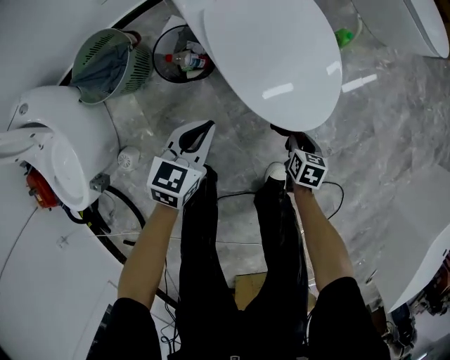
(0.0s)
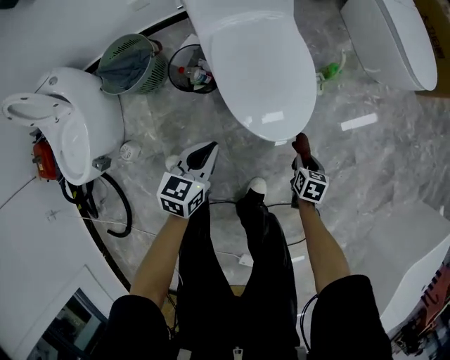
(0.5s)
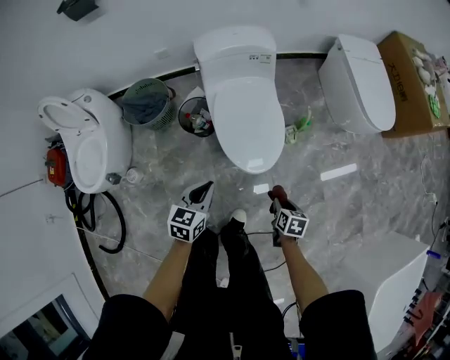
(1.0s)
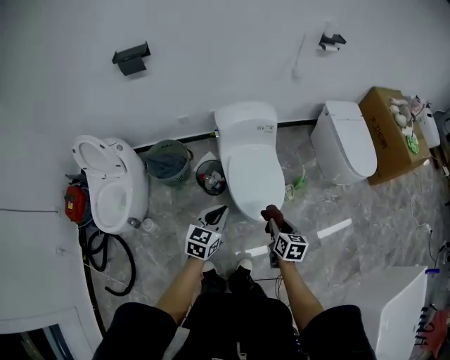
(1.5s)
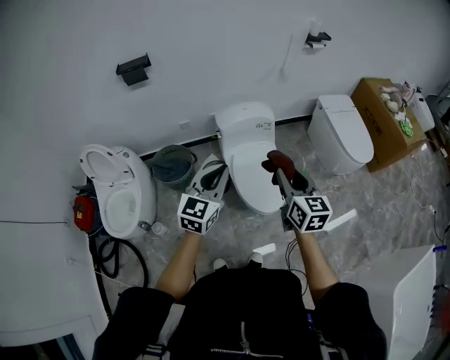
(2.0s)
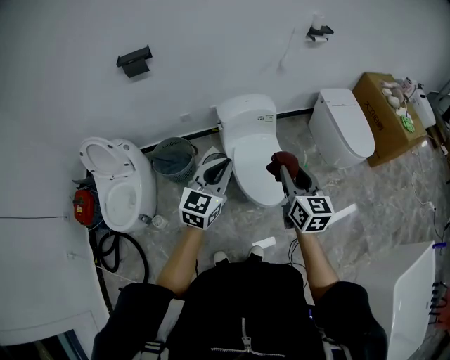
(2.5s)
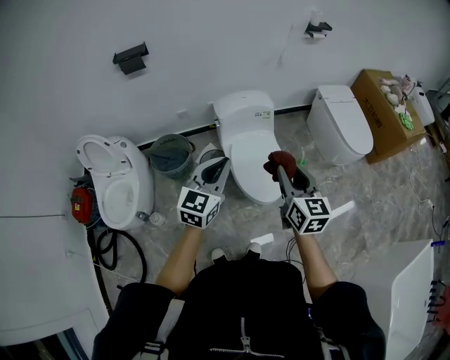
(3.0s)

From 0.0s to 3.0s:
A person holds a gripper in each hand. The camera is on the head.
From 0.0s to 1.5s: Both grippers move upward, about 40 cm. The right gripper swivels some 30 degrees. Meanwhile the left gripper rotates approximately 20 degrees.
From 1.5s to 3.0s: Both grippers move upward, approximately 20 cm. The right gripper swivels some 30 degrees.

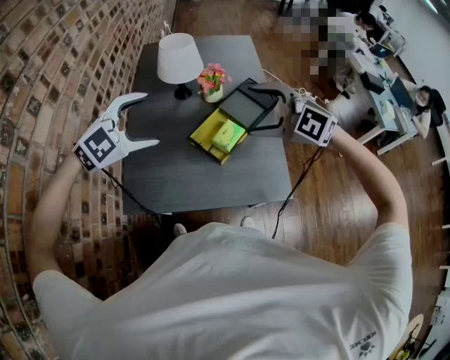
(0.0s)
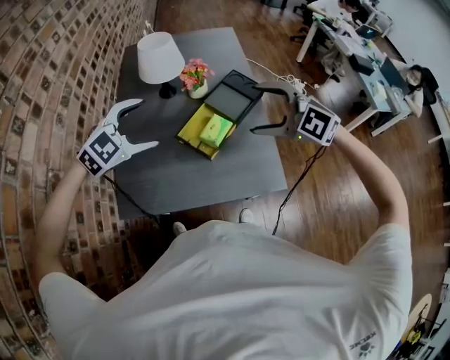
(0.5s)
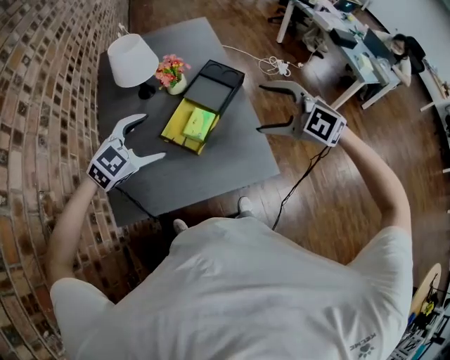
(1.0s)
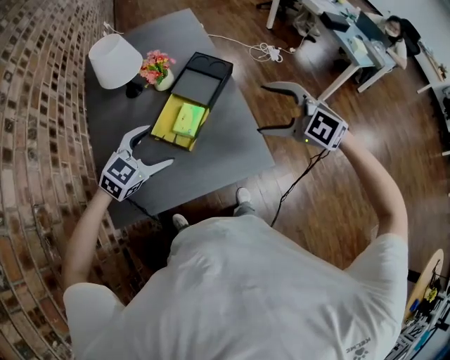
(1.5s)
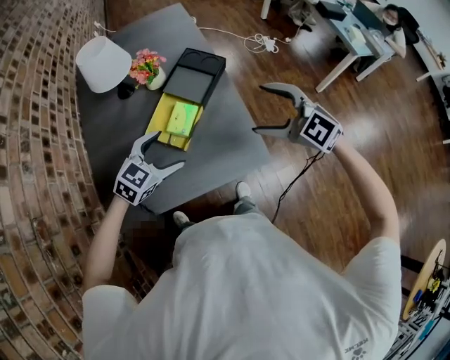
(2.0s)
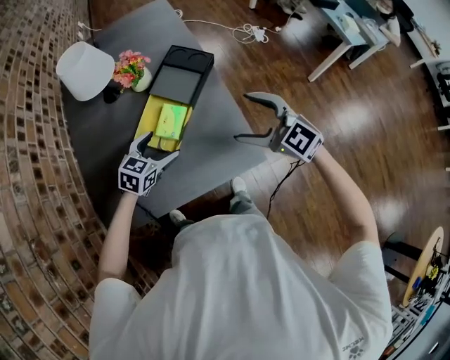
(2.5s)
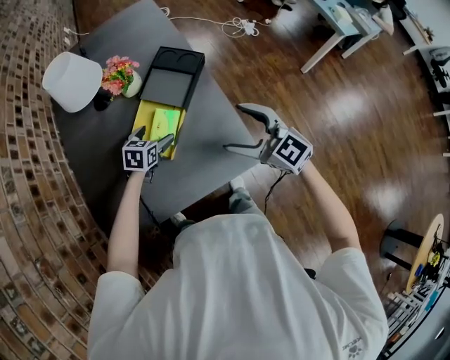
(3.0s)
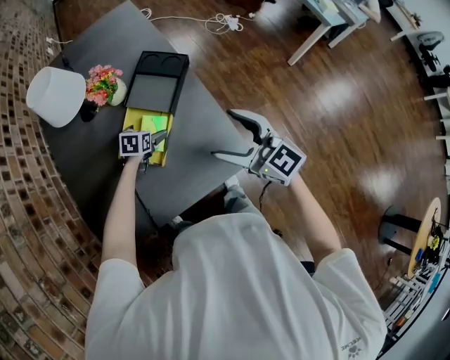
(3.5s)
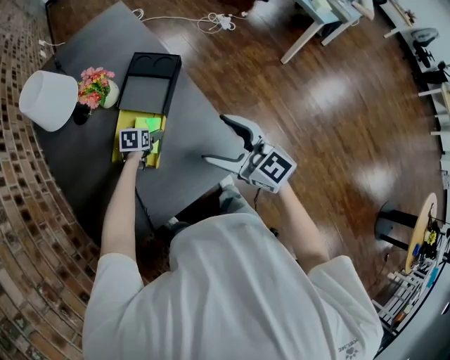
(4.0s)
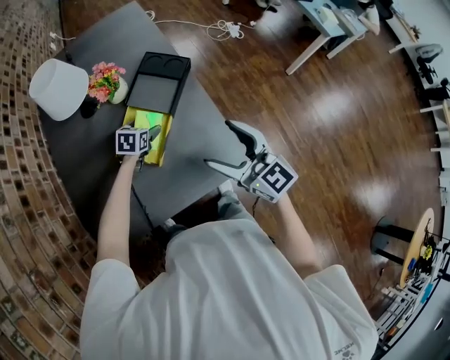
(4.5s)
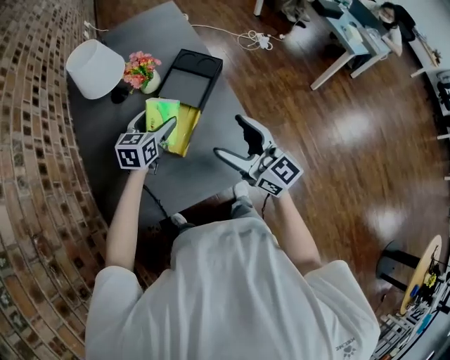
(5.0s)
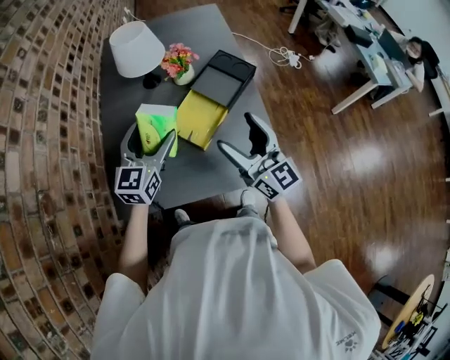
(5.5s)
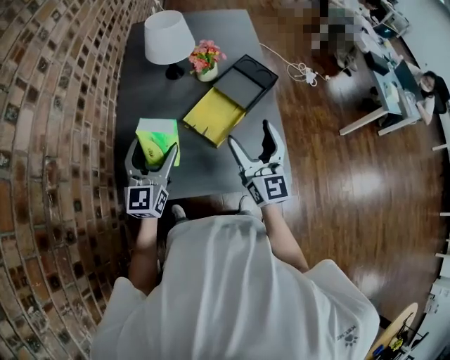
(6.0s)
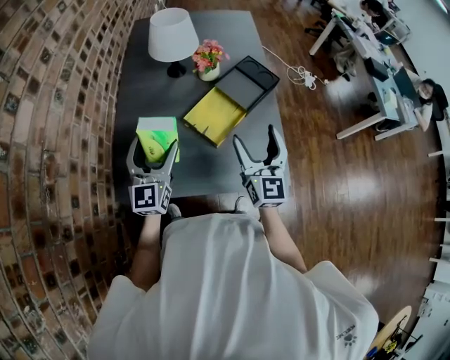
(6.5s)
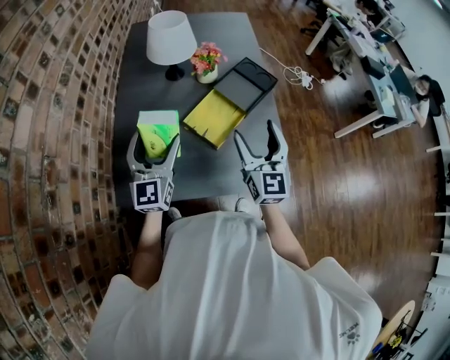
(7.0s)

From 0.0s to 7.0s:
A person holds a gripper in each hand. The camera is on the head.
From 0.0s to 2.0s: The right gripper heads to the right and downward, covering some 20 cm, and turns by approximately 30 degrees; the left gripper goes about 25 cm downward and to the right, and rotates some 30 degrees.
From 2.0s to 3.5s: The right gripper ends up some 5 cm from where it was, and swivels some 30 degrees, while the left gripper is displaced downward and forward by roughly 30 cm, and rotates approximately 40 degrees.
From 3.5s to 5.0s: The right gripper shifts by some 5 cm. The left gripper heads upward, covering roughly 20 cm, and turns by roughly 30 degrees.
From 5.0s to 7.0s: The right gripper heads to the left, covering approximately 10 cm, and rotates approximately 20 degrees, while the left gripper moves to the left, backward and upward, some 25 cm, and angles its fingers upward, by approximately 30 degrees.

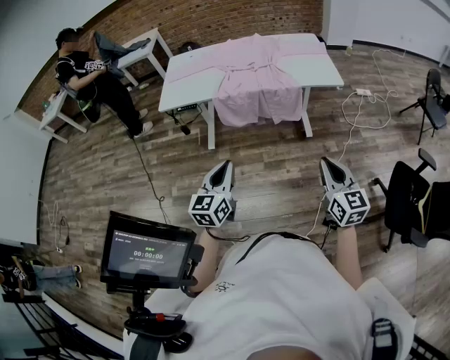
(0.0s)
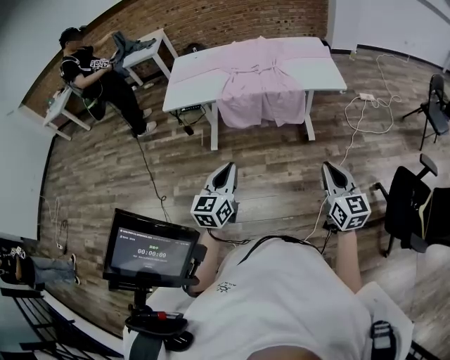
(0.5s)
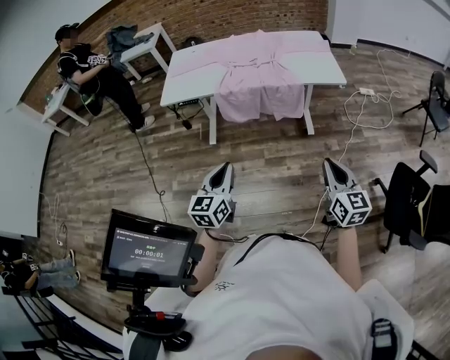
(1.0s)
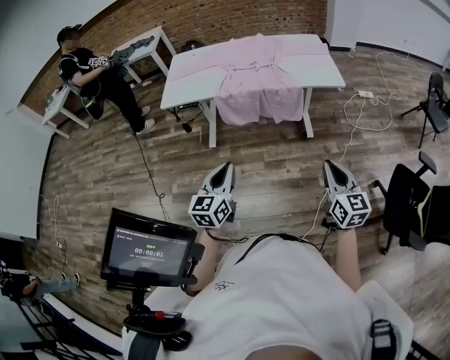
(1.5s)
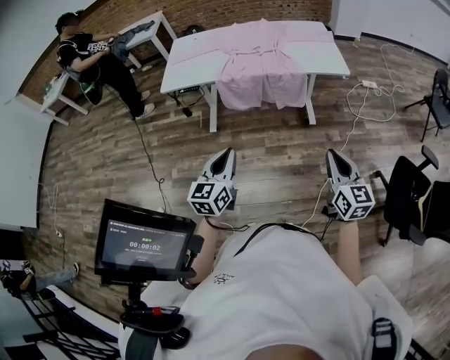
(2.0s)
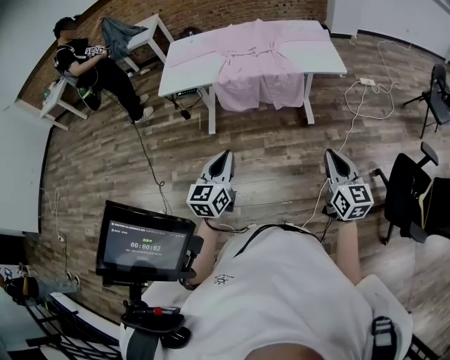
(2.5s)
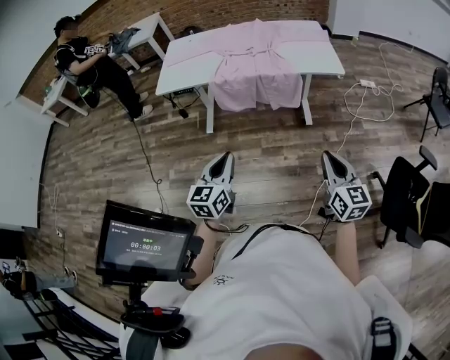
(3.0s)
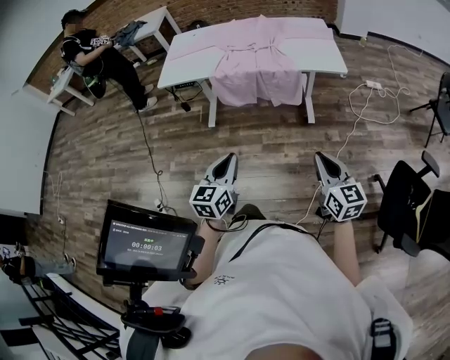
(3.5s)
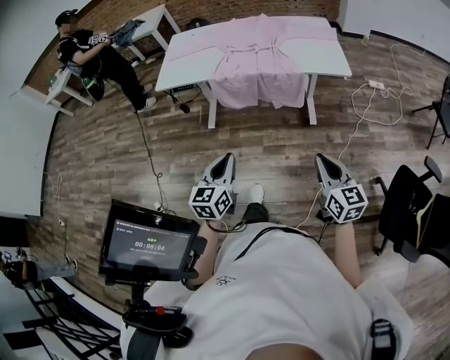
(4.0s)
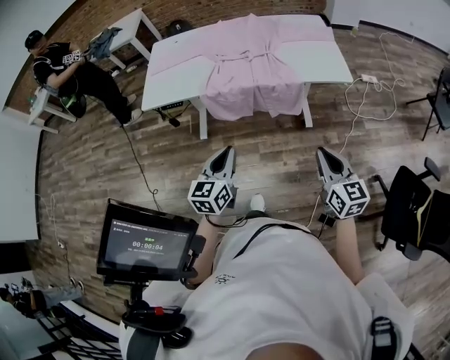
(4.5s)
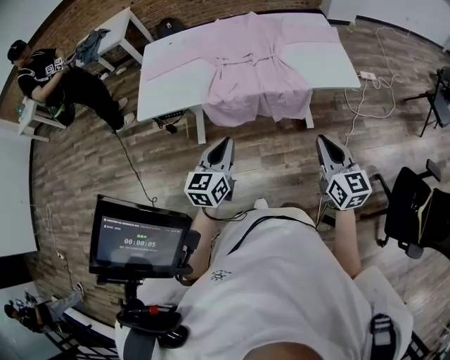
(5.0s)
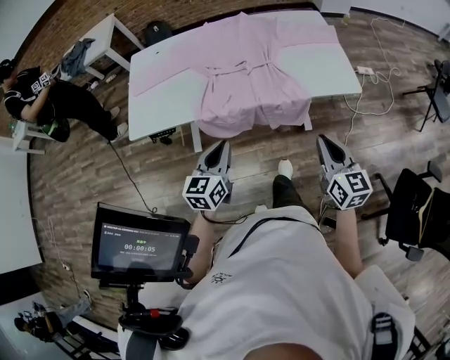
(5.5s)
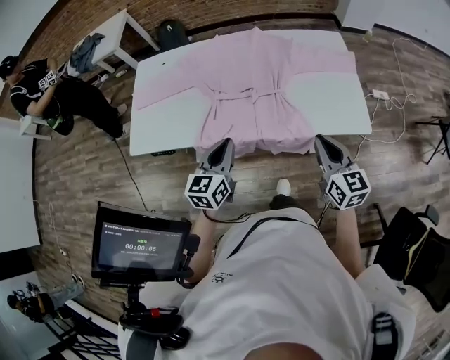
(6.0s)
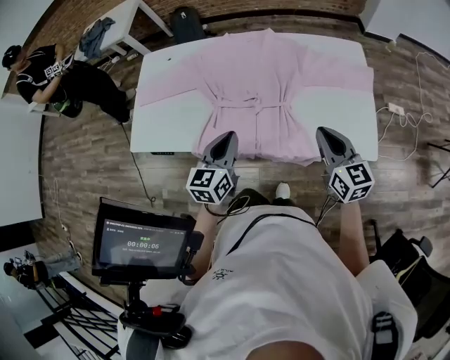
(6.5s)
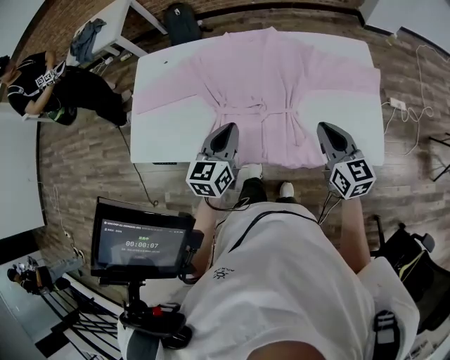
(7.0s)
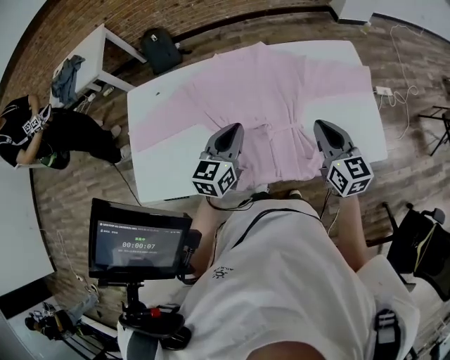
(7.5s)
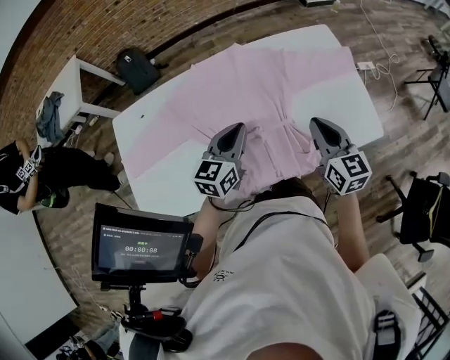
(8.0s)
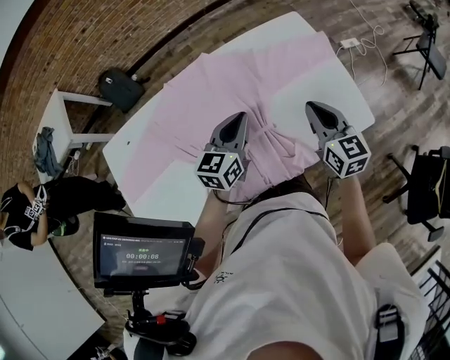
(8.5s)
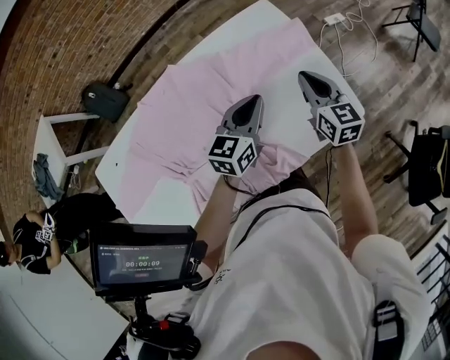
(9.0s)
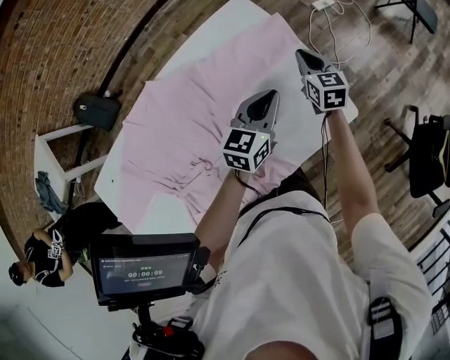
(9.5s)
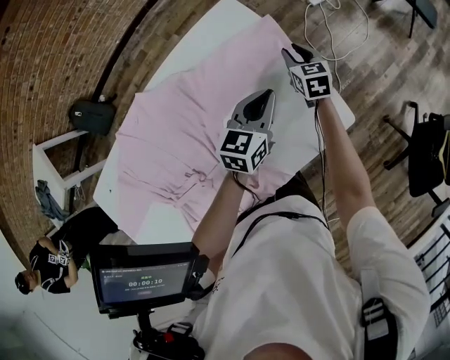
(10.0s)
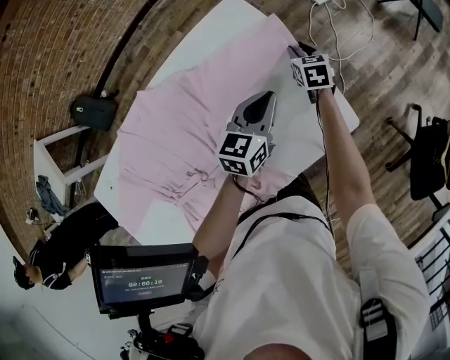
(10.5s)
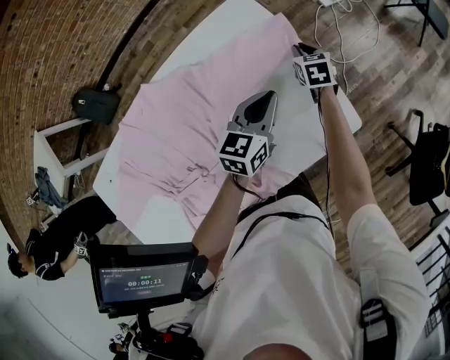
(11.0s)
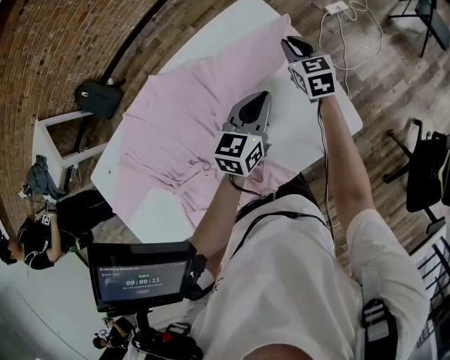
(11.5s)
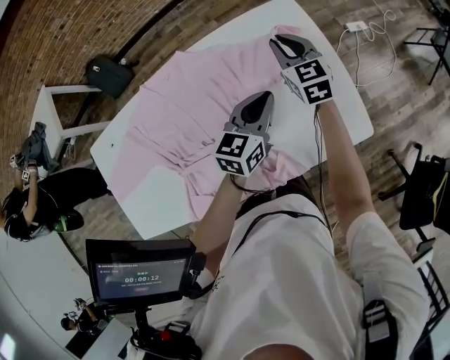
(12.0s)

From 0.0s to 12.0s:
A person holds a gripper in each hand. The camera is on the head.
From 0.0s to 2.0s: The grippers make only small movements.
From 2.0s to 4.0s: The right gripper moves about 5 cm; the left gripper is displaced to the right by some 5 cm.
From 4.0s to 6.0s: The pair of grippers is taken forward, roughly 50 cm.
From 6.0s to 8.0s: The left gripper ends up roughly 25 cm from where it was, and swivels about 20 degrees, while the right gripper shifts by roughly 20 cm.
From 8.0s to 10.0s: The pair of grippers is taken forward and to the right, approximately 40 cm. The right gripper travels downward by about 20 cm, turns by about 30 degrees, and opens, while the left gripper rotates some 20 degrees.
From 10.0s to 12.0s: The right gripper goes about 25 cm to the left and upward, and swivels approximately 30 degrees, while the left gripper is displaced to the left and backward by some 10 cm.

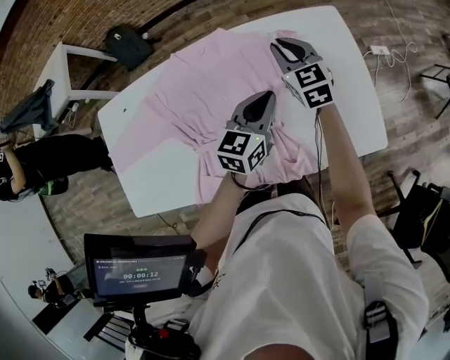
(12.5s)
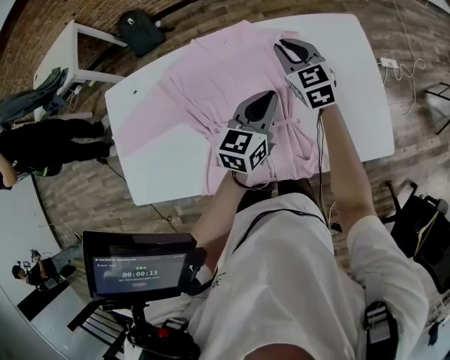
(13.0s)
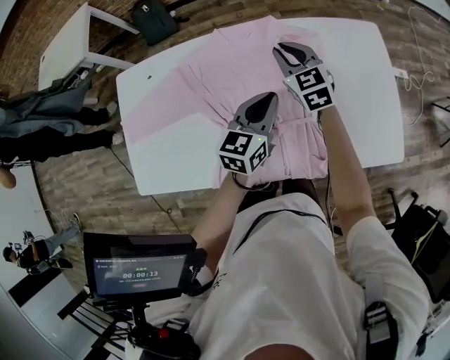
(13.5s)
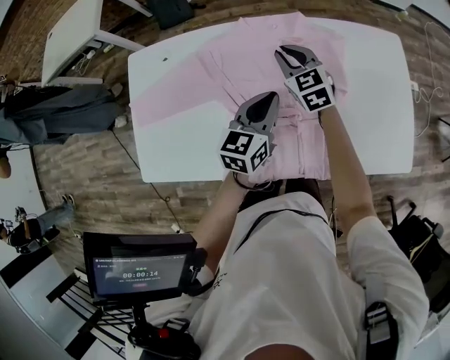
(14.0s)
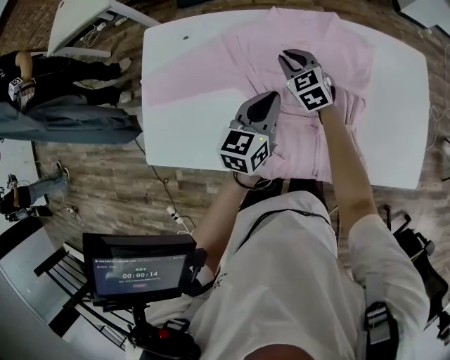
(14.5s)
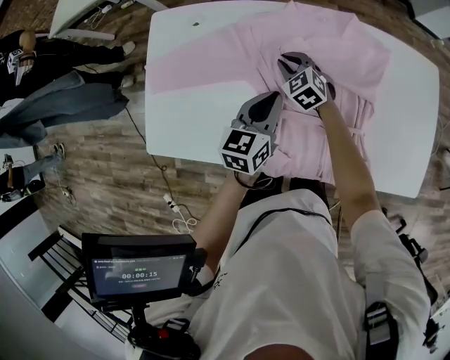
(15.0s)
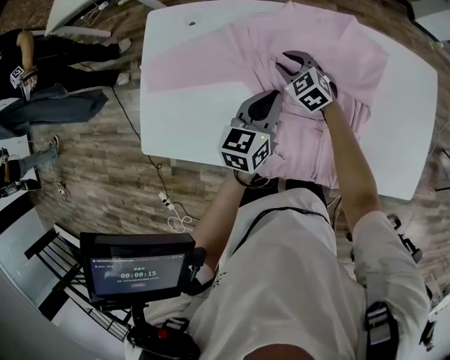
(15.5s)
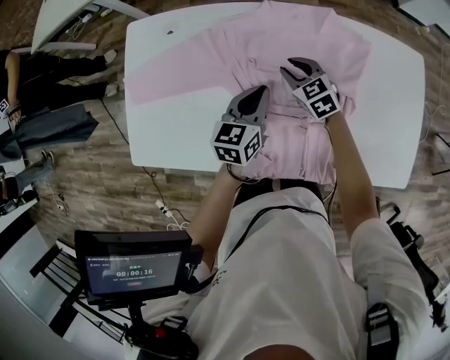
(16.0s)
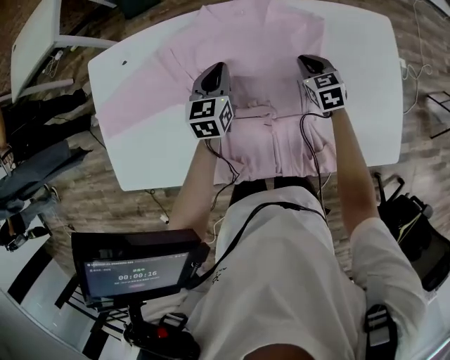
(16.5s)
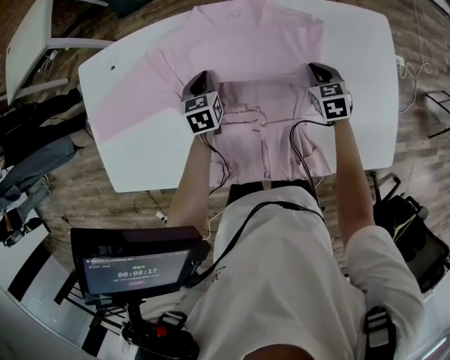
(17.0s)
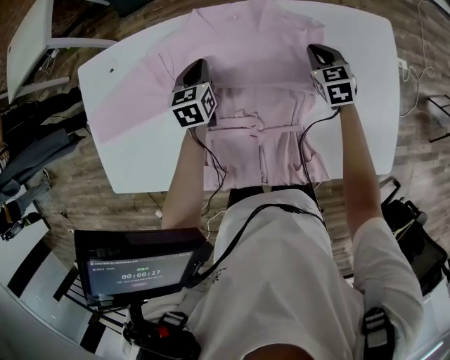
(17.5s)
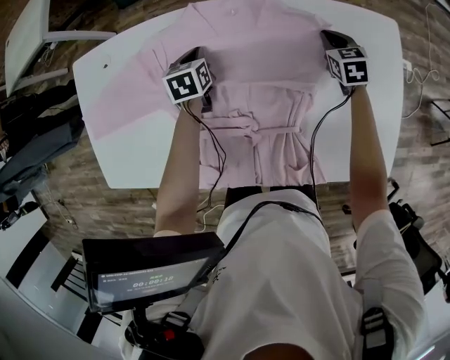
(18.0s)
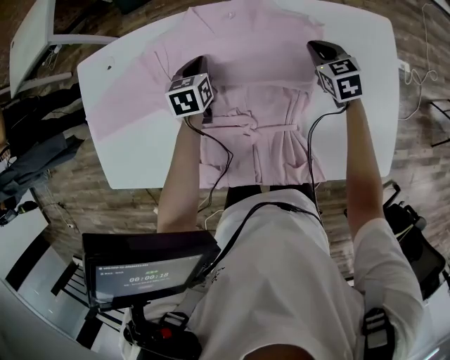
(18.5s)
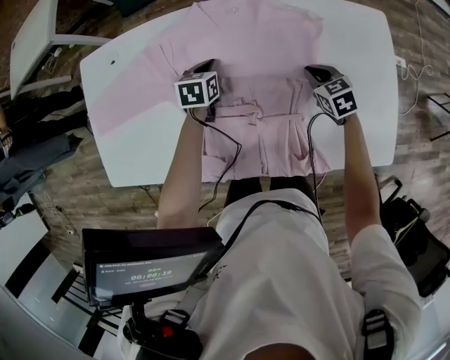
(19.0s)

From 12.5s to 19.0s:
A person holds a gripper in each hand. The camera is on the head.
From 12.5s to 14.5s: Both grippers move to the left, some 30 cm. The left gripper swivels some 20 degrees, while the right gripper swivels roughly 30 degrees.
From 14.5s to 17.0s: The left gripper goes about 20 cm downward and forward, and turns by approximately 30 degrees; the right gripper goes about 30 cm to the right, and changes its angle by about 30 degrees.
From 17.0s to 19.0s: The right gripper reaches approximately 10 cm forward, then returns.
